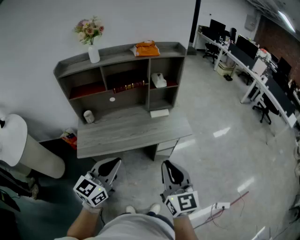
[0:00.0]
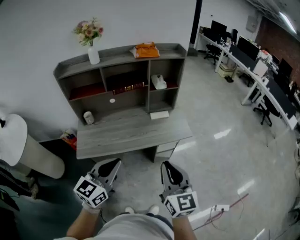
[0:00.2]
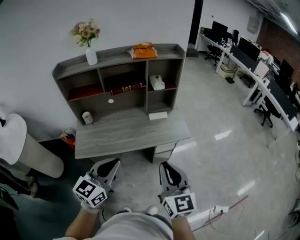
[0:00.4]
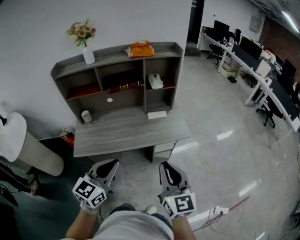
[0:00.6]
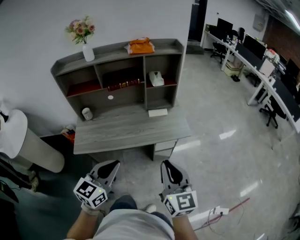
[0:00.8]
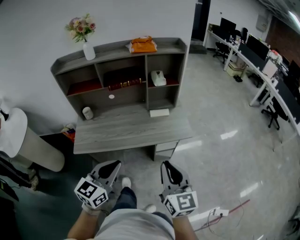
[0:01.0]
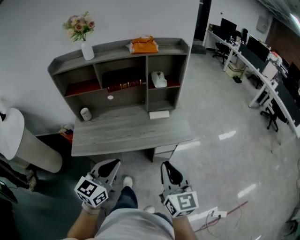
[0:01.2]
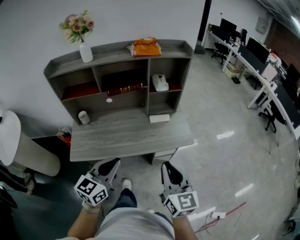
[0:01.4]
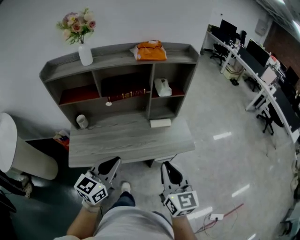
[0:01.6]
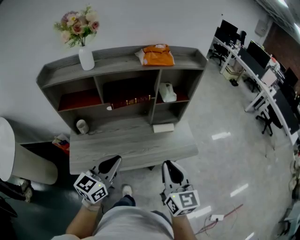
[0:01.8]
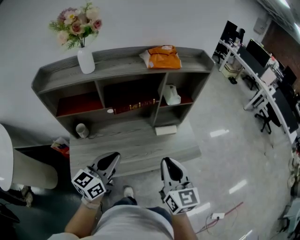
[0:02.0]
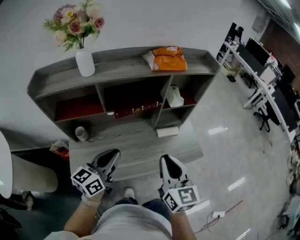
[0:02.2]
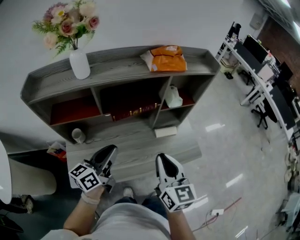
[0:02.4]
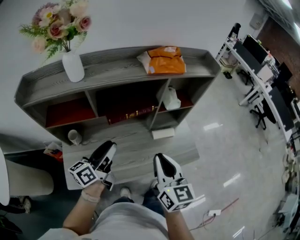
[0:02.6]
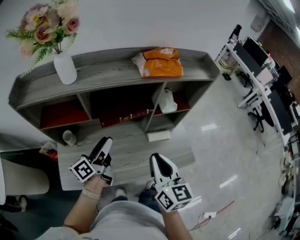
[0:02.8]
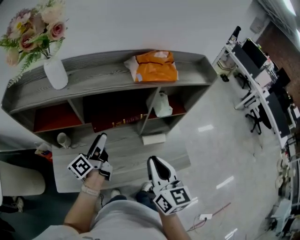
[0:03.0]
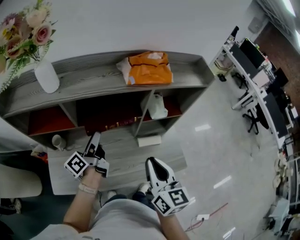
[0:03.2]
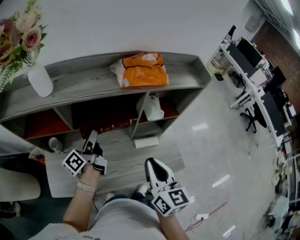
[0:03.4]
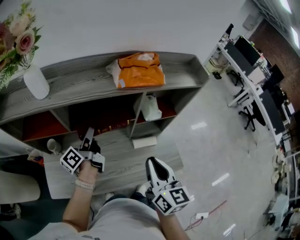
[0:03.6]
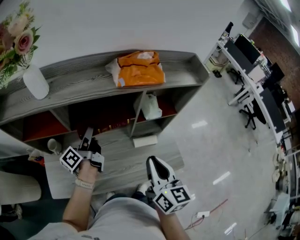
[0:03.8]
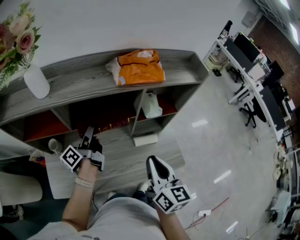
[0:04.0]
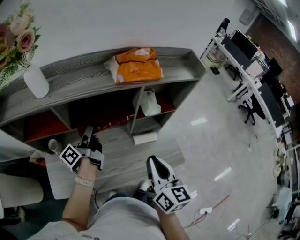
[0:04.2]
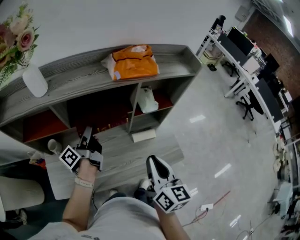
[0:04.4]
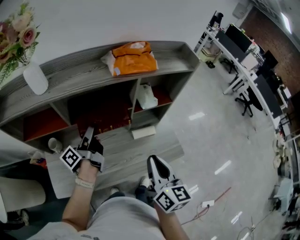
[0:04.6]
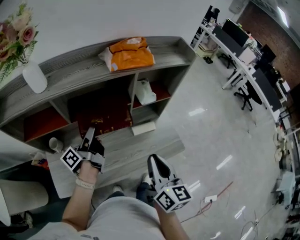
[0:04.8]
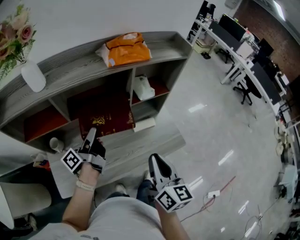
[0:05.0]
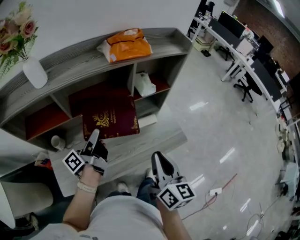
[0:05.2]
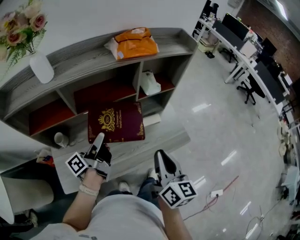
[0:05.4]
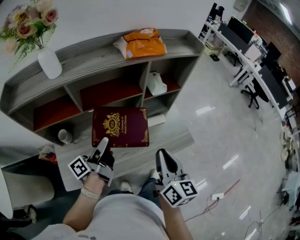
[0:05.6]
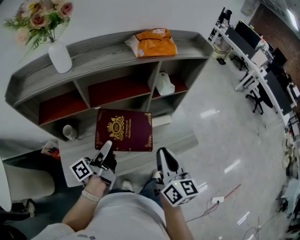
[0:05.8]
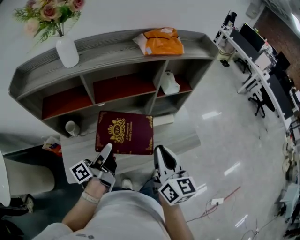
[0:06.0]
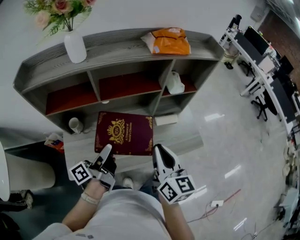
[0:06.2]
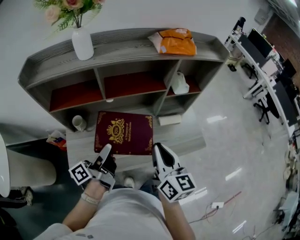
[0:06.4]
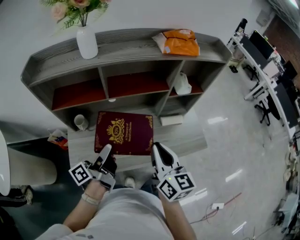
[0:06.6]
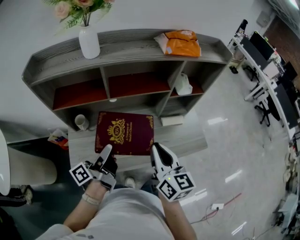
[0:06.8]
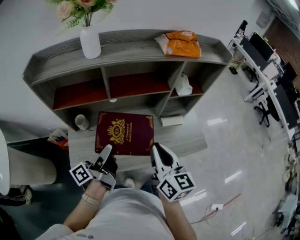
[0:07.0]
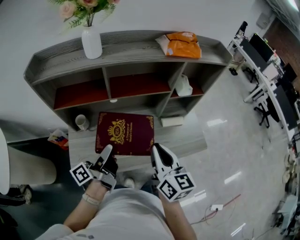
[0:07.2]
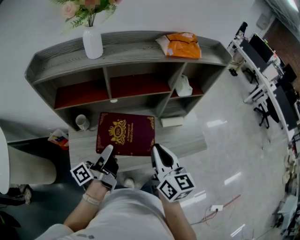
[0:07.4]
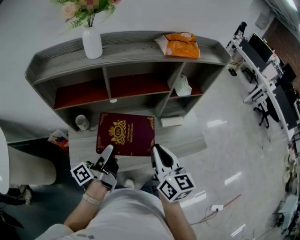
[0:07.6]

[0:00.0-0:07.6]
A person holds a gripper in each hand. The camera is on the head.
0:00.0 to 0:01.6: Both grippers travel together forward, roughly 15 cm.
0:01.6 to 0:03.0: The two grippers go some 30 cm forward and to the left. The left gripper rotates around the line of its fingers by about 60 degrees, counterclockwise from behind, and opens its fingers.
0:03.0 to 0:04.6: The right gripper shifts by approximately 5 cm.
0:04.6 to 0:06.0: The right gripper shifts about 10 cm to the left and backward; the left gripper goes some 15 cm backward.
0:06.0 to 0:07.6: The left gripper moves approximately 5 cm, while the right gripper heads to the left, covering some 5 cm.

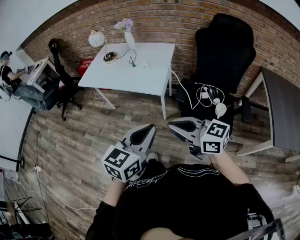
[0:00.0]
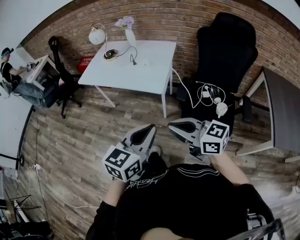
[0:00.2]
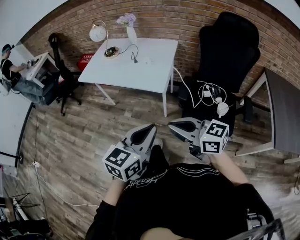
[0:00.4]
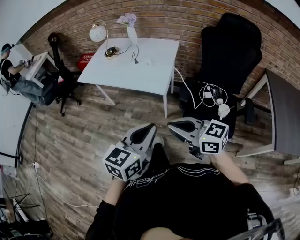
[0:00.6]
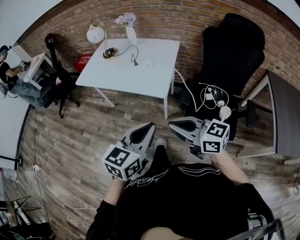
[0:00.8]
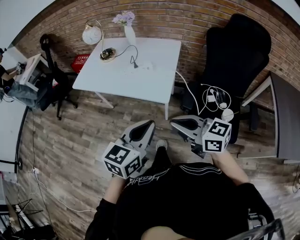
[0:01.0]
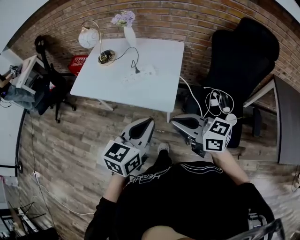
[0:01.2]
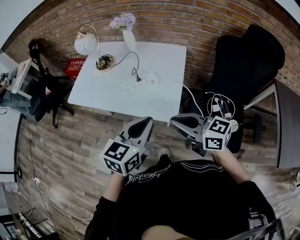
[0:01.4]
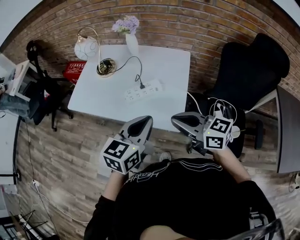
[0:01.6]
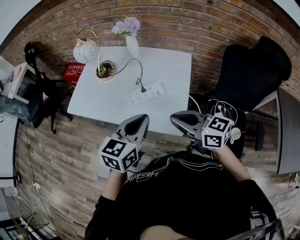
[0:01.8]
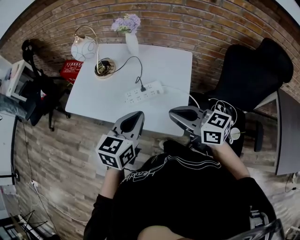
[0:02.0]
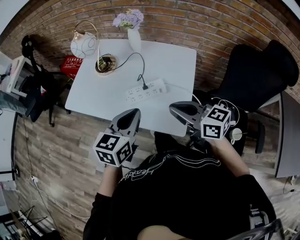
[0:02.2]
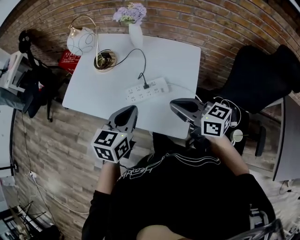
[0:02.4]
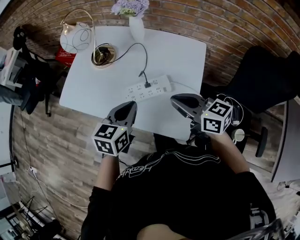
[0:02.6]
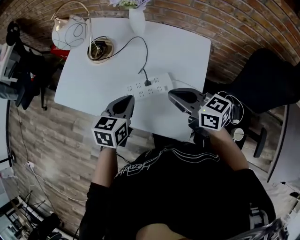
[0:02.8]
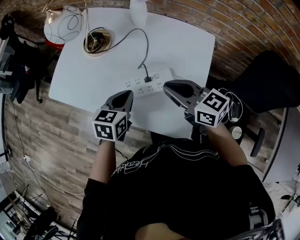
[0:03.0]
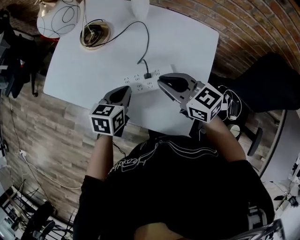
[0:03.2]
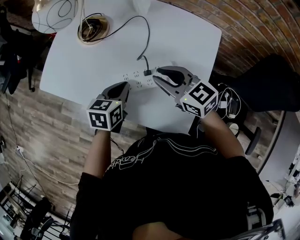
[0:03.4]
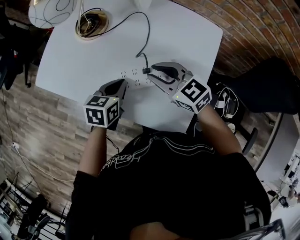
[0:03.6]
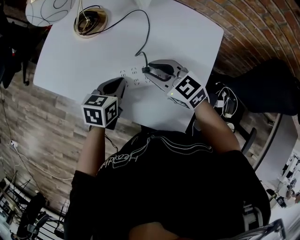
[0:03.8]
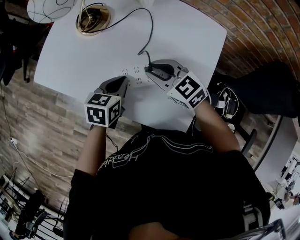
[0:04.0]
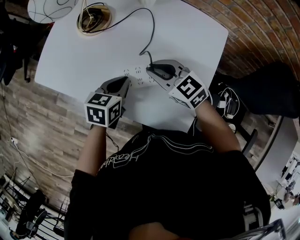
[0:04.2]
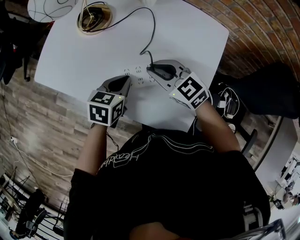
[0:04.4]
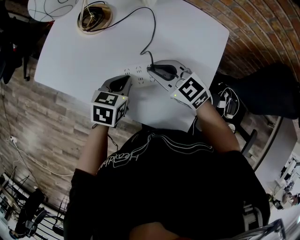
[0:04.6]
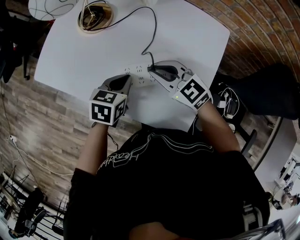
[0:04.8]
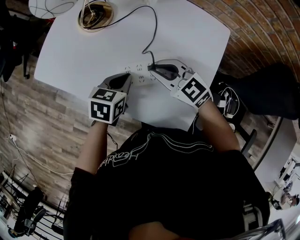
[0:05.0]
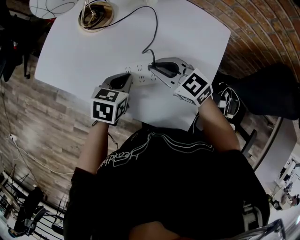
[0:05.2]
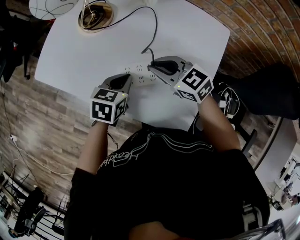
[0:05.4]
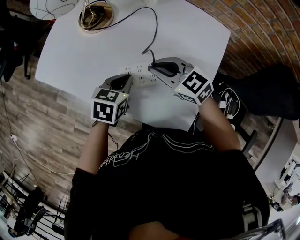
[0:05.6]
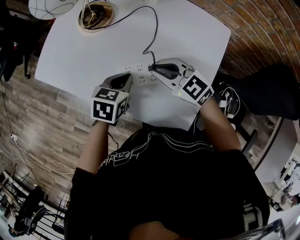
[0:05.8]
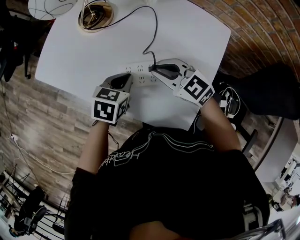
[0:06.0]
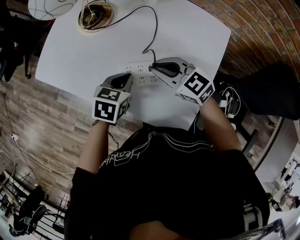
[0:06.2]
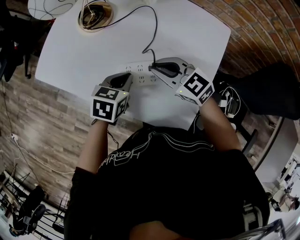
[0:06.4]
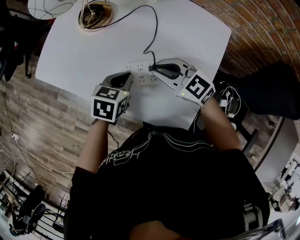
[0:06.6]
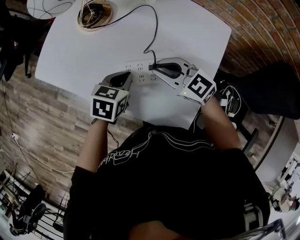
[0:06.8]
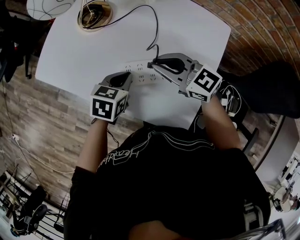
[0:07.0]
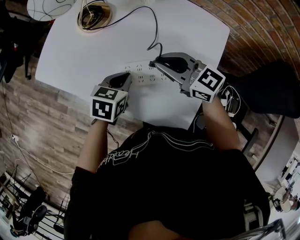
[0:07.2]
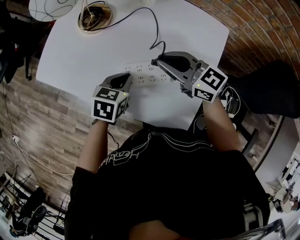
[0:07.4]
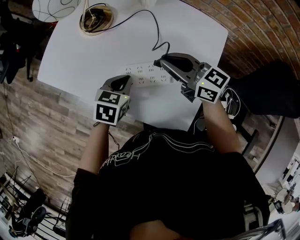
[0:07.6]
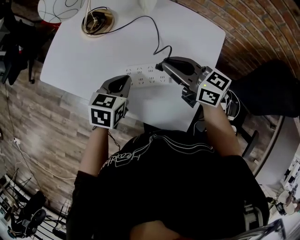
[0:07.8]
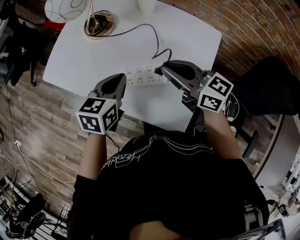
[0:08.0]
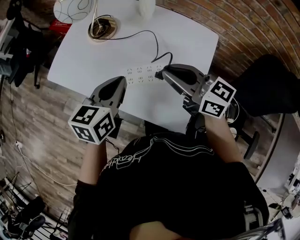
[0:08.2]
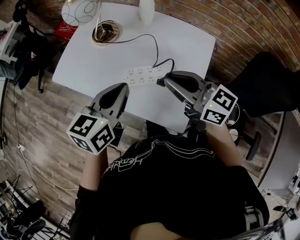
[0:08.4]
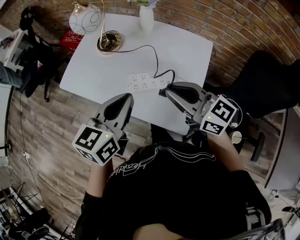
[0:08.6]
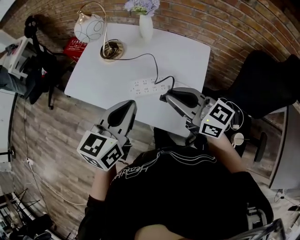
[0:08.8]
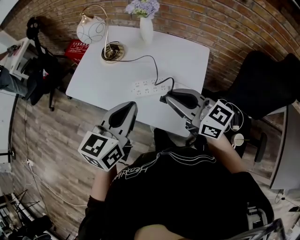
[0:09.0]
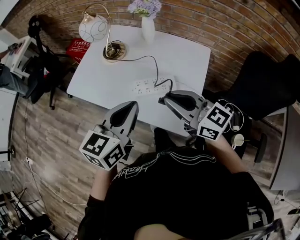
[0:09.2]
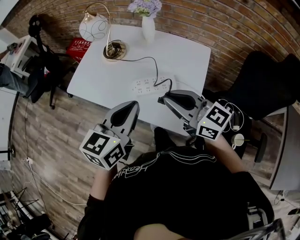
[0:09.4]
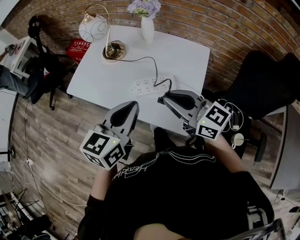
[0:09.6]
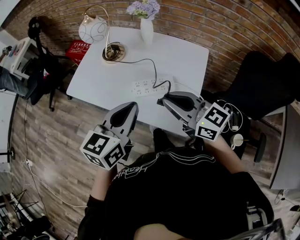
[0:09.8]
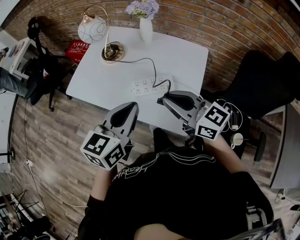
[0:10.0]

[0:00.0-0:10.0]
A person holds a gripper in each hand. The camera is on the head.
0:00.0 to 0:01.4: The two grippers go roughly 30 cm forward.
0:01.4 to 0:02.8: The right gripper travels forward by roughly 25 cm. The left gripper travels forward and downward by approximately 30 cm.
0:02.8 to 0:04.2: The right gripper moves downward, forward and to the left, about 20 cm, and swivels roughly 30 degrees. Meanwhile the left gripper is displaced downward and forward by approximately 15 cm.
0:04.2 to 0:05.8: The grippers make only small movements.
0:05.8 to 0:07.2: The right gripper ends up about 5 cm from where it was, and turns by about 20 degrees.
0:07.2 to 0:08.6: The grippers both shift upward and backward by some 25 cm. The left gripper tilts its fingers about 30 degrees upward.
0:08.6 to 0:10.0: The grippers stay close to where they were, moving slightly.

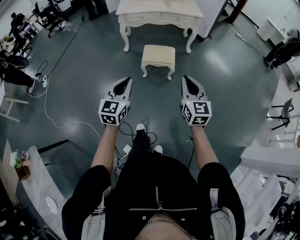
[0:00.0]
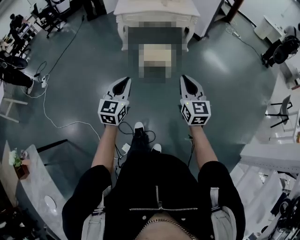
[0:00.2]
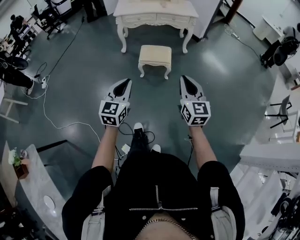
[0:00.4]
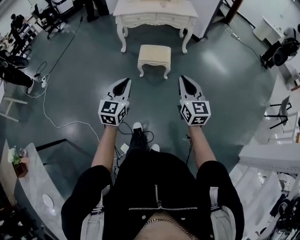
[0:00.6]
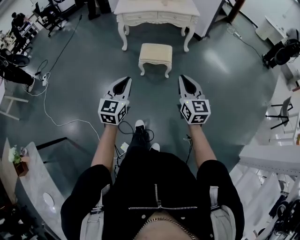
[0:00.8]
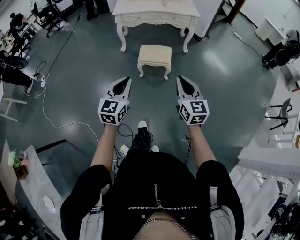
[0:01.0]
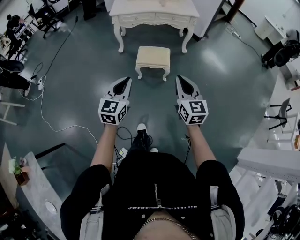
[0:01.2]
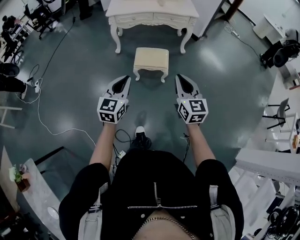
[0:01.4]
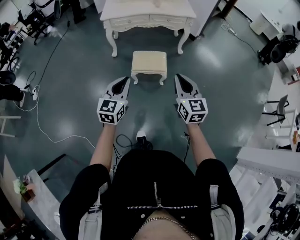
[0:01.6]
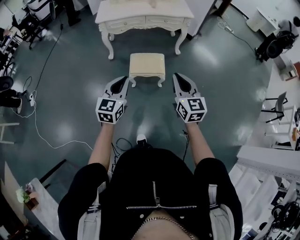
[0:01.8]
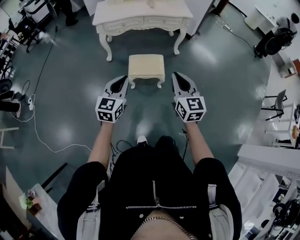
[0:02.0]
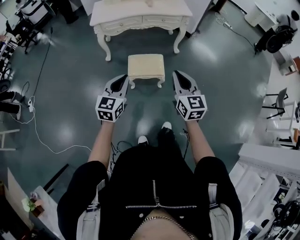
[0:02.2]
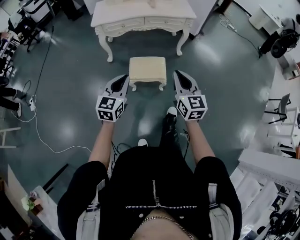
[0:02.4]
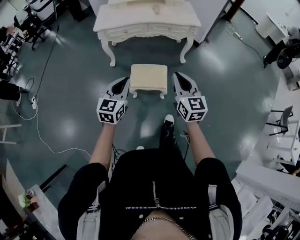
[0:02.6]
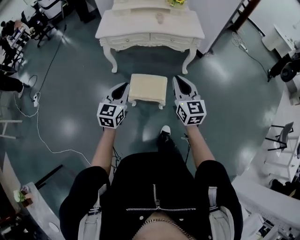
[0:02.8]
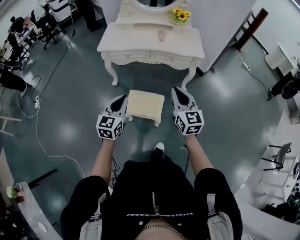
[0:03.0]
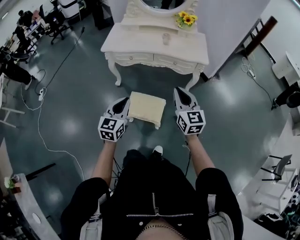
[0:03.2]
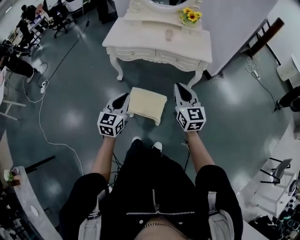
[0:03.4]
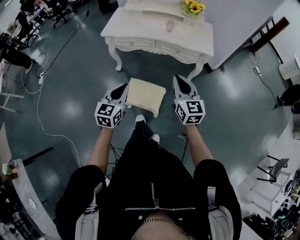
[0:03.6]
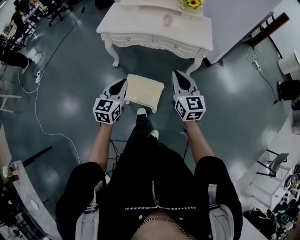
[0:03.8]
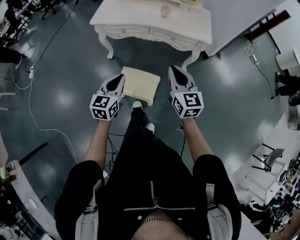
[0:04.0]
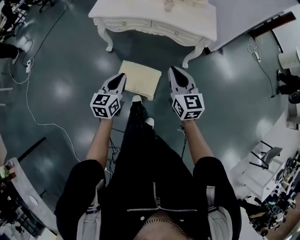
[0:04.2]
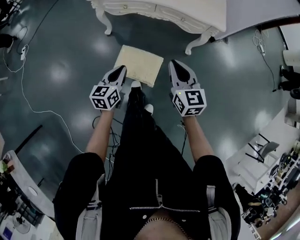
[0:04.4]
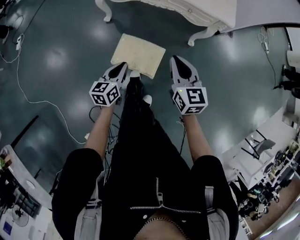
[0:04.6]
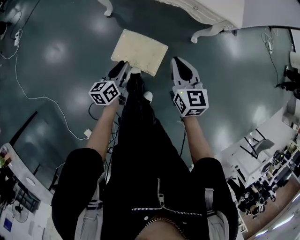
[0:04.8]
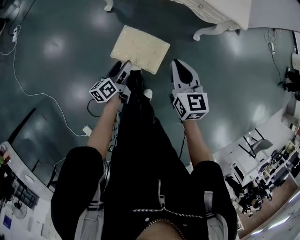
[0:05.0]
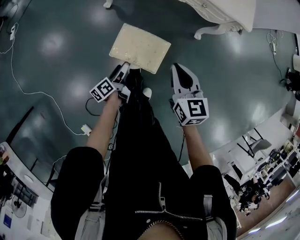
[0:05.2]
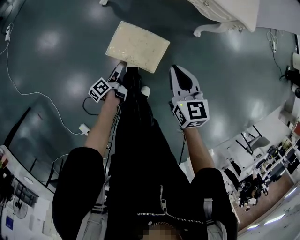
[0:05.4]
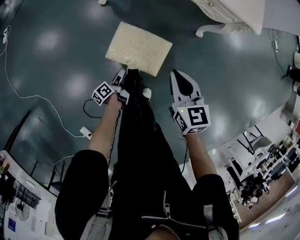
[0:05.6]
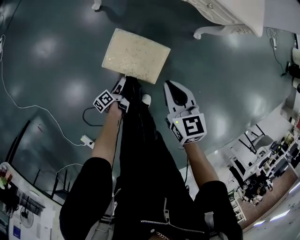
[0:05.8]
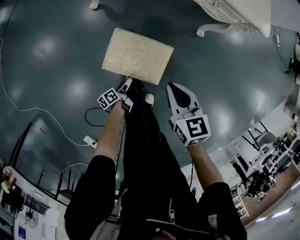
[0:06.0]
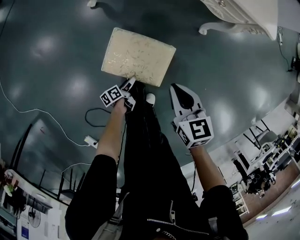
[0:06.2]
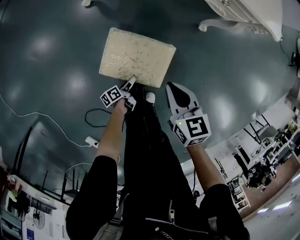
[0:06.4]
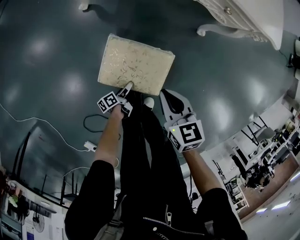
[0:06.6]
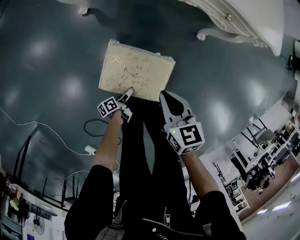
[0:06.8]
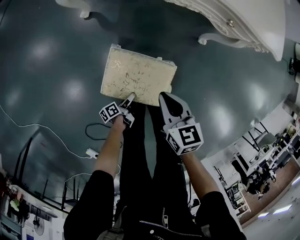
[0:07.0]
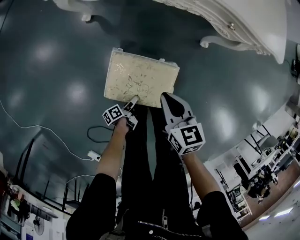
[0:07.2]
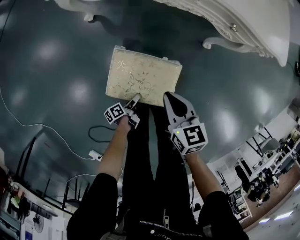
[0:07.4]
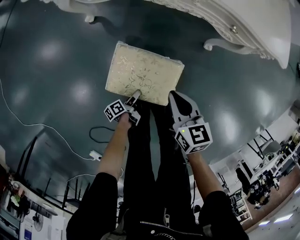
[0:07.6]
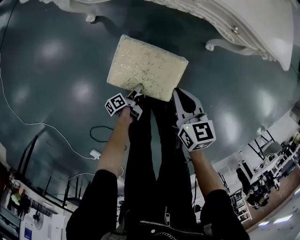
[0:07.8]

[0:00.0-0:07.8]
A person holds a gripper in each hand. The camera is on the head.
0:00.0 to 0:01.6: Both grippers travel together forward, roughly 20 cm.
0:01.6 to 0:03.2: The two grippers go approximately 40 cm forward.
0:03.2 to 0:04.6: The left gripper moves downward, about 20 cm, and rotates roughly 30 degrees. The right gripper travels downward and forward by approximately 15 cm.
0:04.6 to 0:06.2: The left gripper heads downward, covering roughly 40 cm, rolls counterclockwise, seen from behind, by about 60 degrees, and opens its fingers; the right gripper heads downward, covering approximately 20 cm, and rotates about 20 degrees.
0:06.2 to 0:07.8: The right gripper moves forward and downward, about 15 cm; the left gripper heads forward, covering approximately 10 cm.
